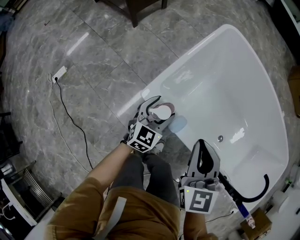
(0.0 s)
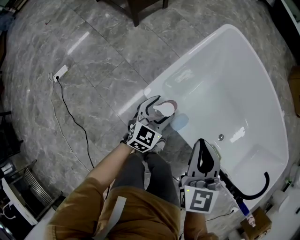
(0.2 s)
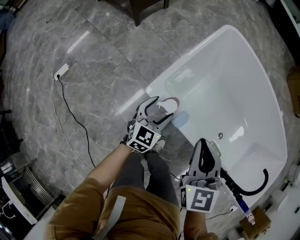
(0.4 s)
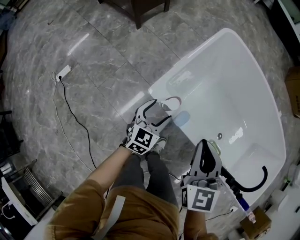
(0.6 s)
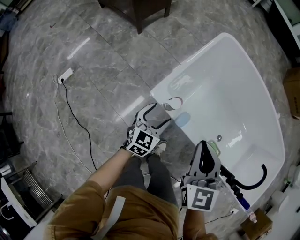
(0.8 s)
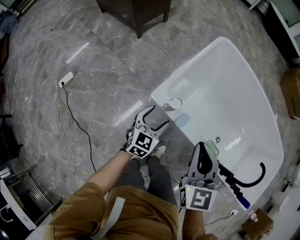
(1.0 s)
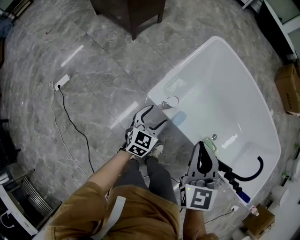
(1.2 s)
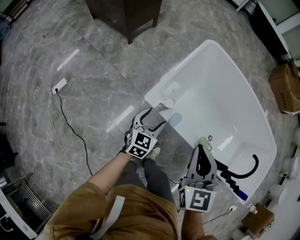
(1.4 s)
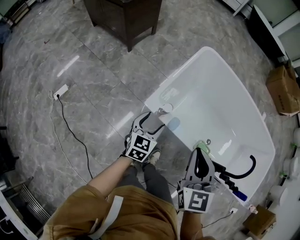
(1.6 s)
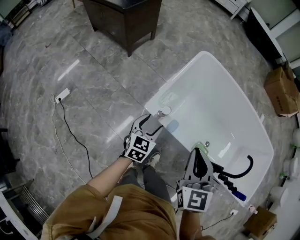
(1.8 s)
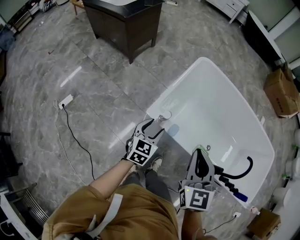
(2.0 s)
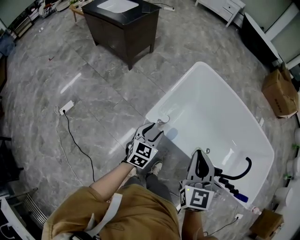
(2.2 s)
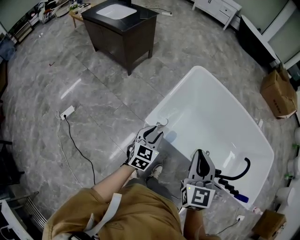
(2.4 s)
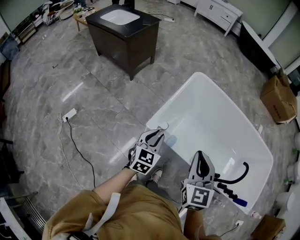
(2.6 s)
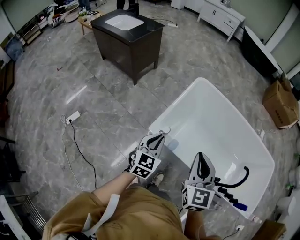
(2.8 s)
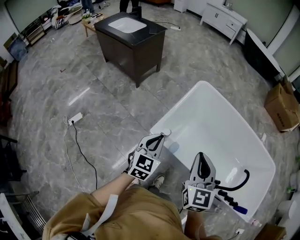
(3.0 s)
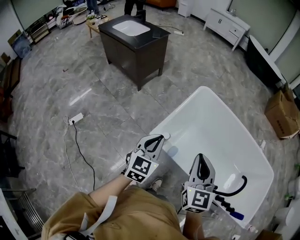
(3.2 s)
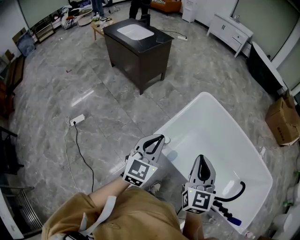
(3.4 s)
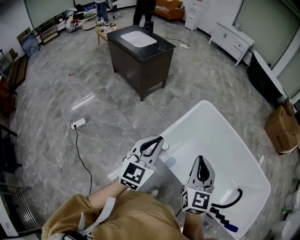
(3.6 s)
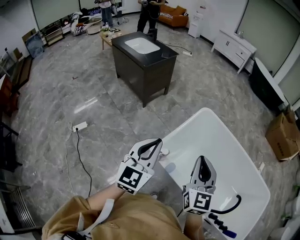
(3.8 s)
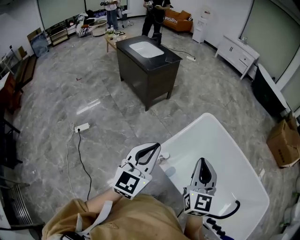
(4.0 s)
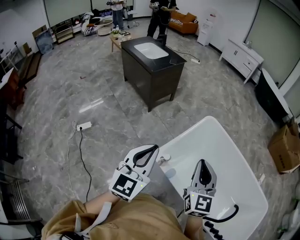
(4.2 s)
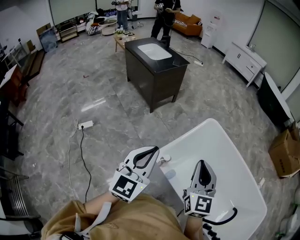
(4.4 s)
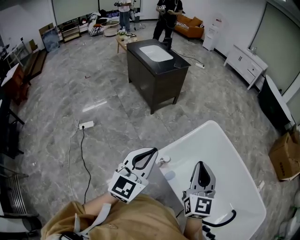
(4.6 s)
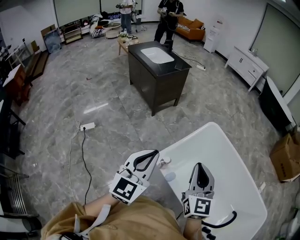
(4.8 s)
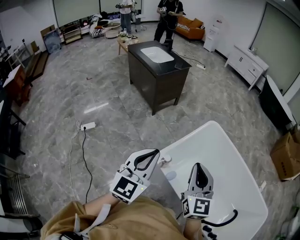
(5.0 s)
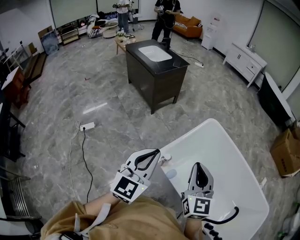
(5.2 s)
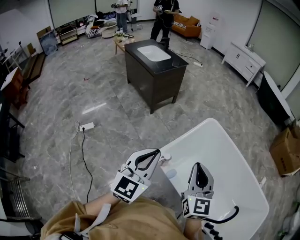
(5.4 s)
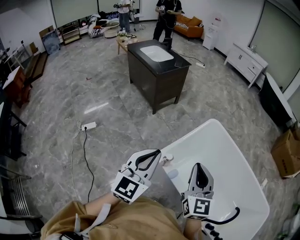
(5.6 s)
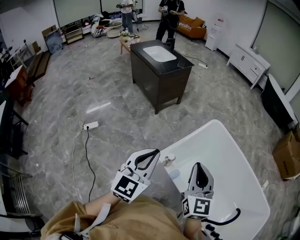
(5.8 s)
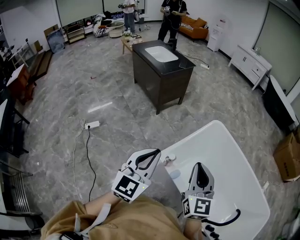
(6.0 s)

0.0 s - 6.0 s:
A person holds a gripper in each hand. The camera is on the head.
0.0 s - 1.6 s: The grippers both shift upward and backward by some 15 cm.
1.6 s - 3.0 s: The right gripper moves upward, about 10 cm, while the left gripper shifts roughly 20 cm upward, and closes up.
3.0 s - 4.4 s: The right gripper shifts some 10 cm upward and forward, while the left gripper goes roughly 20 cm upward, and rotates some 20 degrees.
4.4 s - 6.0 s: The grippers make only small movements.

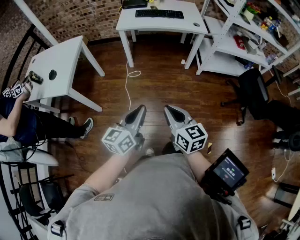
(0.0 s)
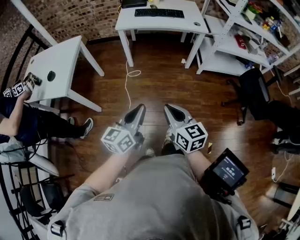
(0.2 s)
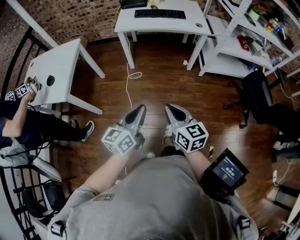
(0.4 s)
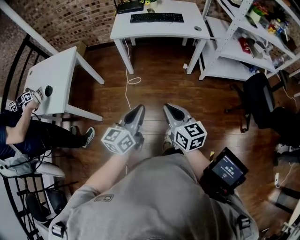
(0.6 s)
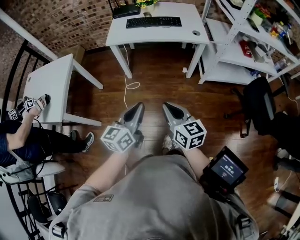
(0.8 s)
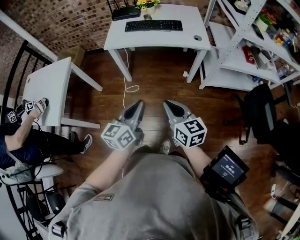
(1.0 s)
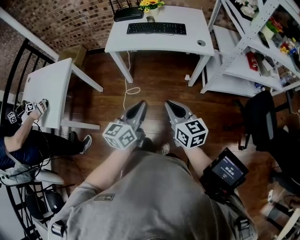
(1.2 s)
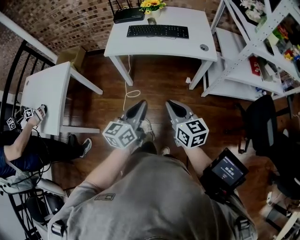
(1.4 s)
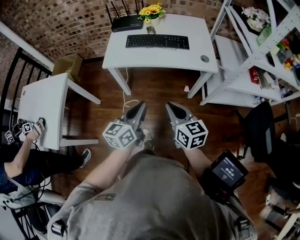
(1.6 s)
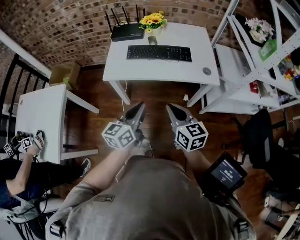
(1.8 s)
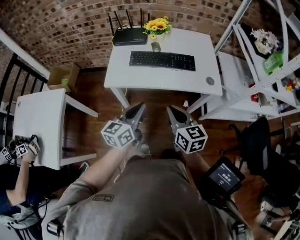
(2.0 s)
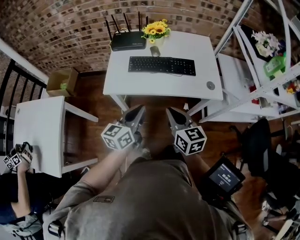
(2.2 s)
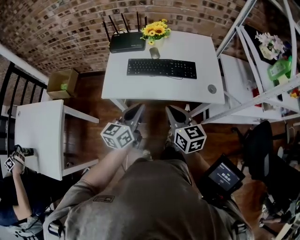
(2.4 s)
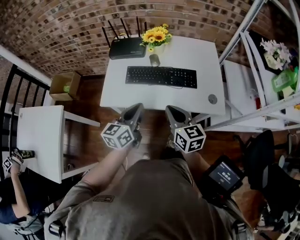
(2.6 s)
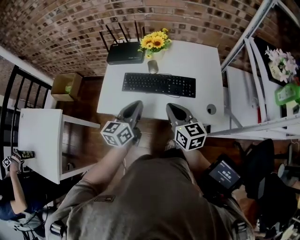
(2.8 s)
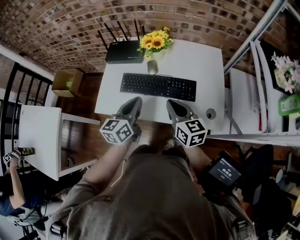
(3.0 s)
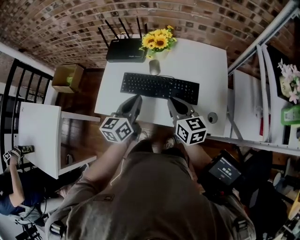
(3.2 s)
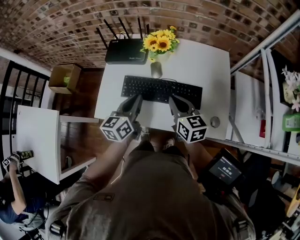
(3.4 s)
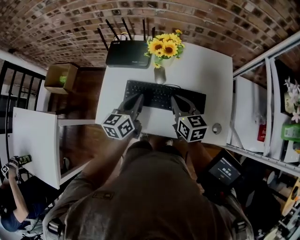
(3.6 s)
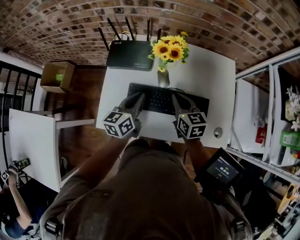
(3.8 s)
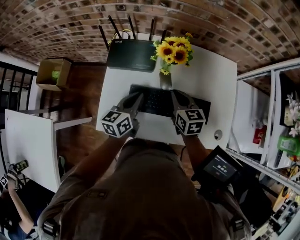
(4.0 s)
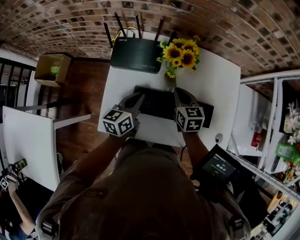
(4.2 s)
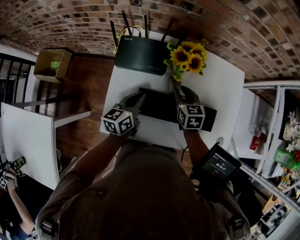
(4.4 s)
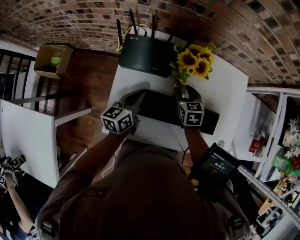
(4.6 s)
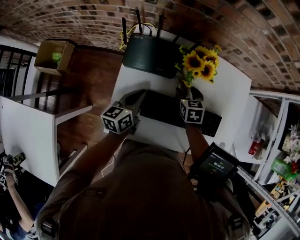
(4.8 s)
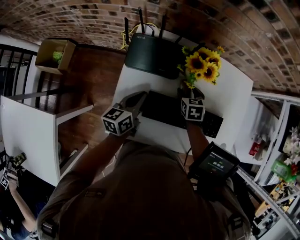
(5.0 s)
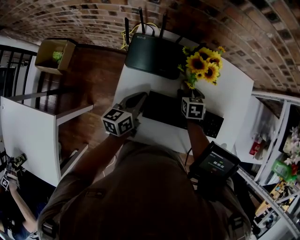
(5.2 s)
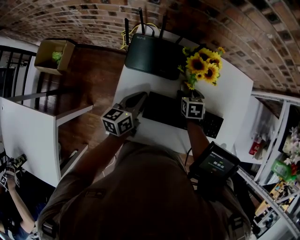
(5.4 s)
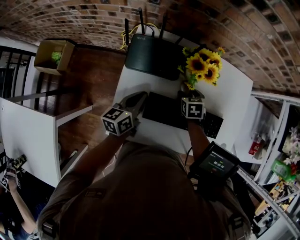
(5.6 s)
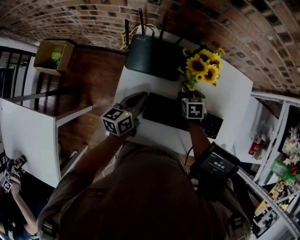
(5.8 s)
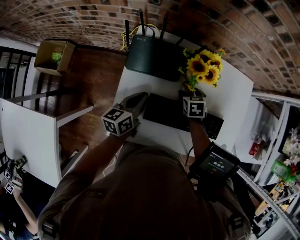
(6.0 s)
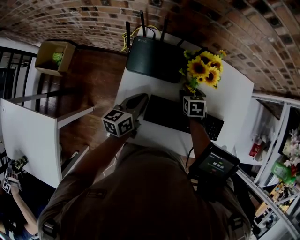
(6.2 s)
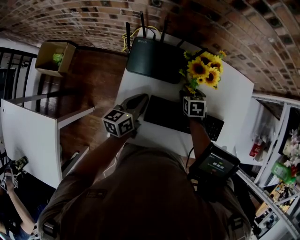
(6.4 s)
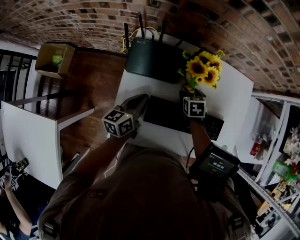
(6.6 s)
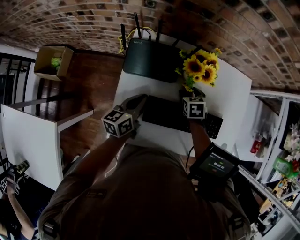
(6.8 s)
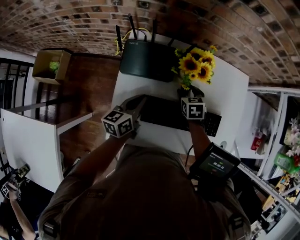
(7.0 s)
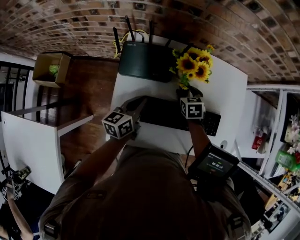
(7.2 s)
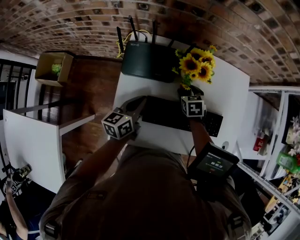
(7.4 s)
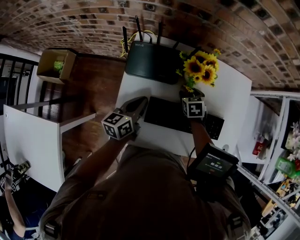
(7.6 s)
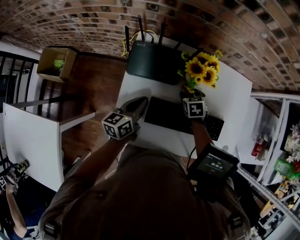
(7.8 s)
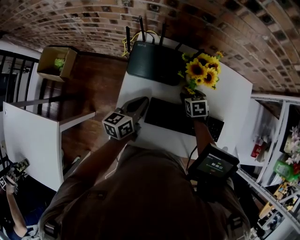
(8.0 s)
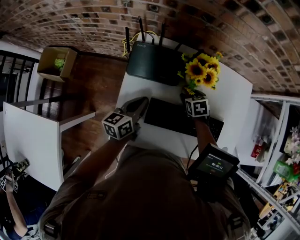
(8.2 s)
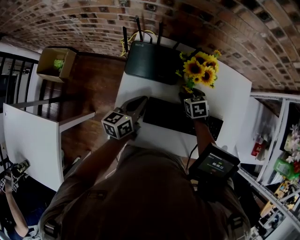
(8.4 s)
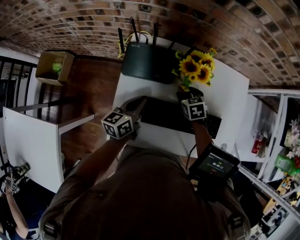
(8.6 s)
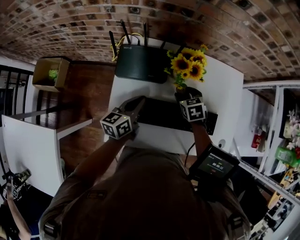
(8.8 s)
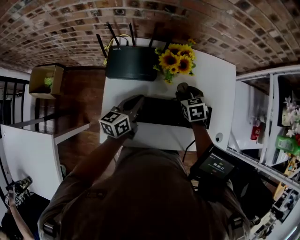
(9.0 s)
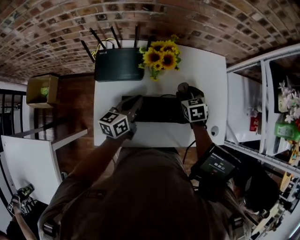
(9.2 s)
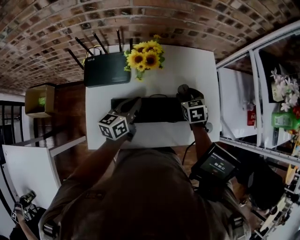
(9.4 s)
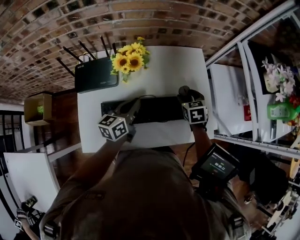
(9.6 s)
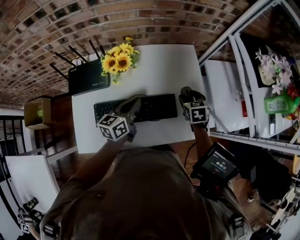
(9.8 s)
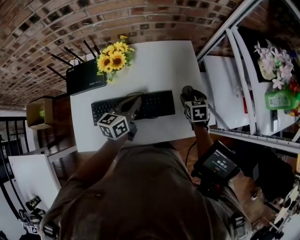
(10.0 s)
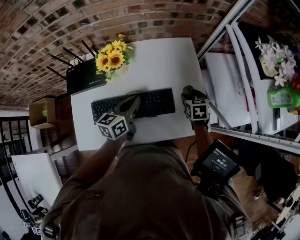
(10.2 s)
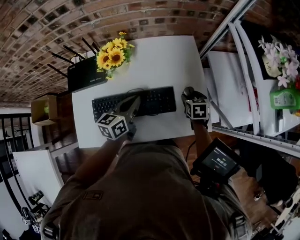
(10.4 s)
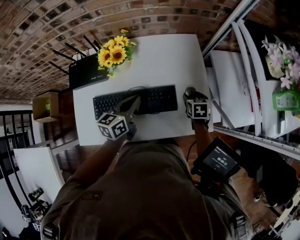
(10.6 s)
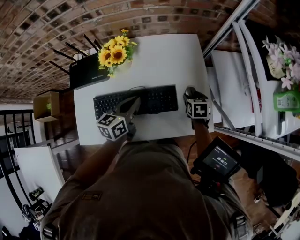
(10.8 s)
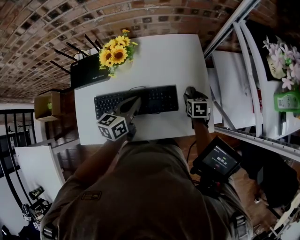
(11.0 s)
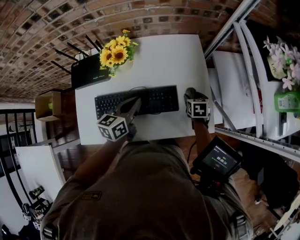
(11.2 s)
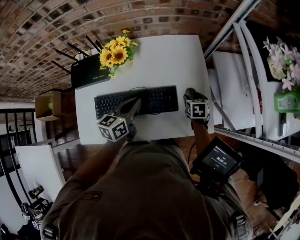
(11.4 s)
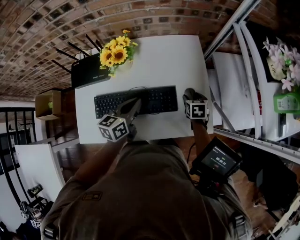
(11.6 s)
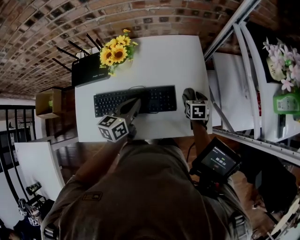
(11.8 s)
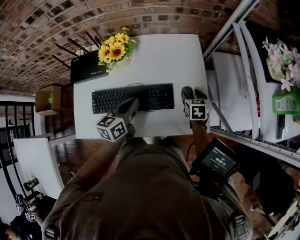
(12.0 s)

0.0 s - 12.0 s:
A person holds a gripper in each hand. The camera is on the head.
0.0 s - 1.6 s: Both grippers are carried forward, about 40 cm.
1.6 s - 3.0 s: Both grippers travel together forward, some 35 cm.
3.0 s - 4.4 s: The left gripper travels forward, to the left and downward by about 25 cm. The right gripper moves forward and downward, some 25 cm, rotates some 30 degrees, and opens up.
4.4 s - 6.0 s: The right gripper is displaced downward by roughly 10 cm, turns by some 20 degrees, and opens up. Meanwhile the left gripper shifts by about 5 cm.
6.0 s - 7.6 s: There are only small adjustments of the grippers.
7.6 s - 9.0 s: The left gripper moves to the right, approximately 5 cm, while the right gripper heads upward and to the right, covering roughly 10 cm.
9.0 s - 10.4 s: Both grippers move to the right, approximately 25 cm. The right gripper changes its angle by about 30 degrees.
10.4 s - 12.0 s: There are only small adjustments of the grippers.

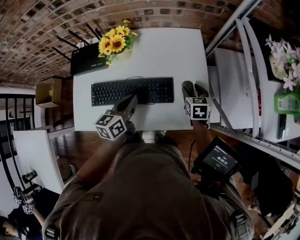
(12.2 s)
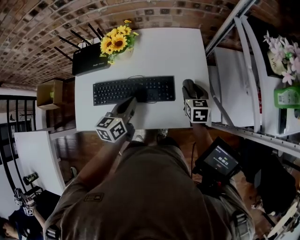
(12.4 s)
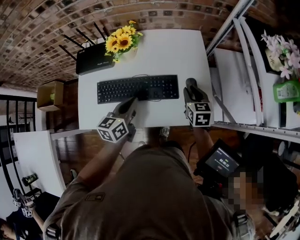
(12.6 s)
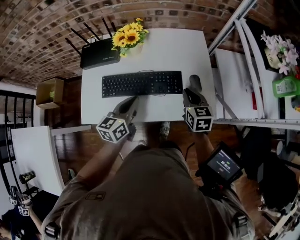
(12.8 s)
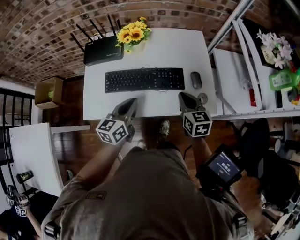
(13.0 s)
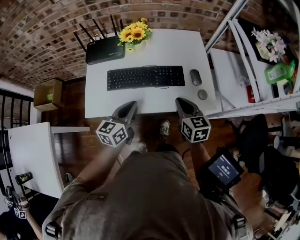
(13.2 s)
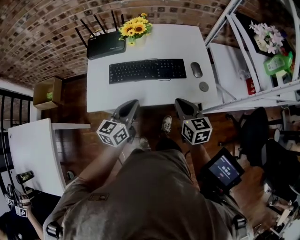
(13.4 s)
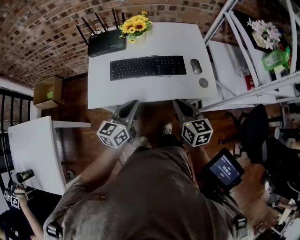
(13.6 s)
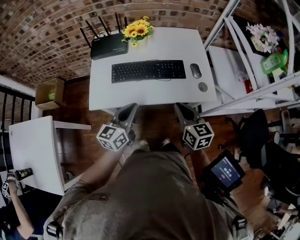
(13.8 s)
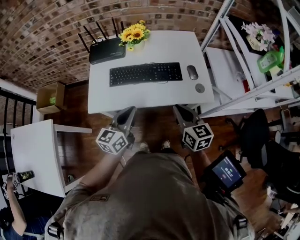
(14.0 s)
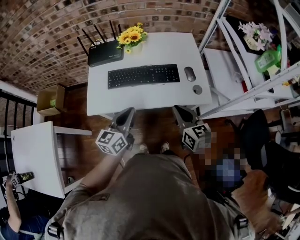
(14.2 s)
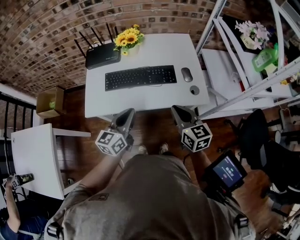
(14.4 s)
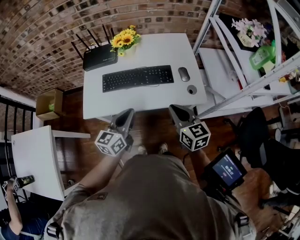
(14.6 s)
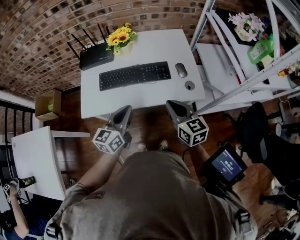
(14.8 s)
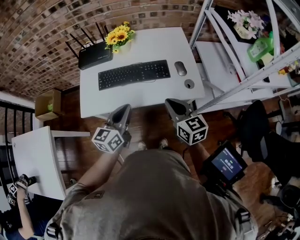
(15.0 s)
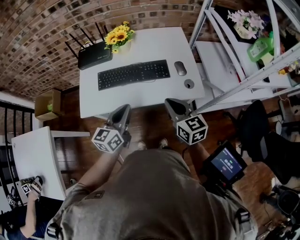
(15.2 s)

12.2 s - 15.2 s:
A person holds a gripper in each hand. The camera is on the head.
12.2 s - 13.8 s: The left gripper is displaced backward and to the left by some 25 cm; the right gripper heads backward, to the left and upward, covering approximately 35 cm, swivels roughly 30 degrees, and closes up.
13.8 s - 15.2 s: The left gripper ends up roughly 5 cm from where it was.

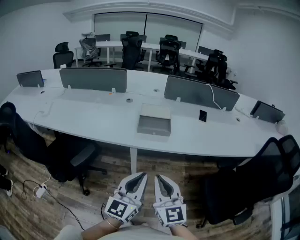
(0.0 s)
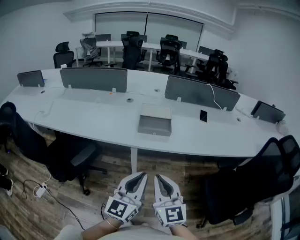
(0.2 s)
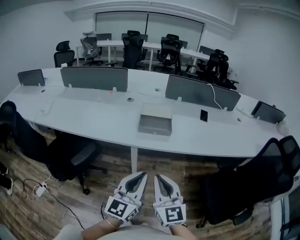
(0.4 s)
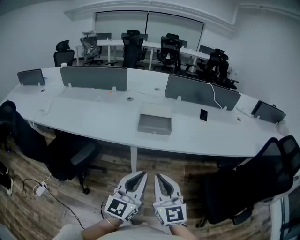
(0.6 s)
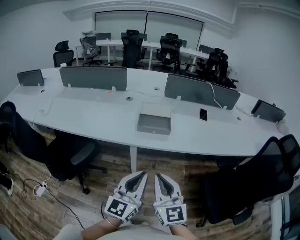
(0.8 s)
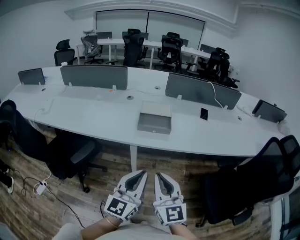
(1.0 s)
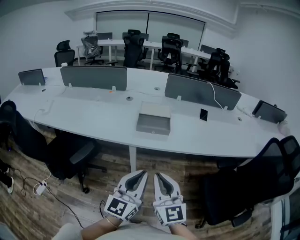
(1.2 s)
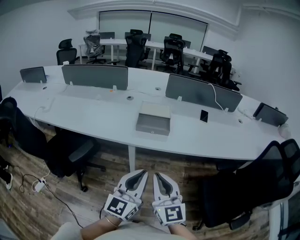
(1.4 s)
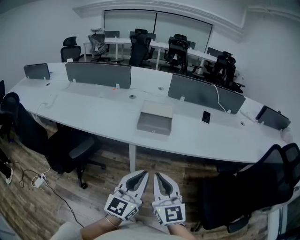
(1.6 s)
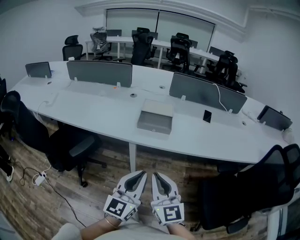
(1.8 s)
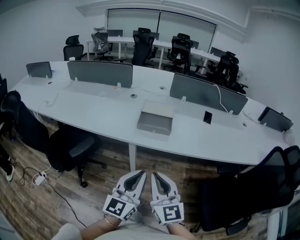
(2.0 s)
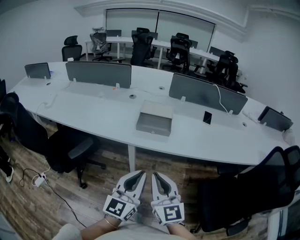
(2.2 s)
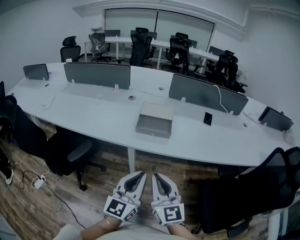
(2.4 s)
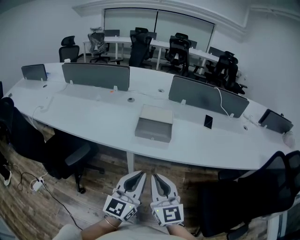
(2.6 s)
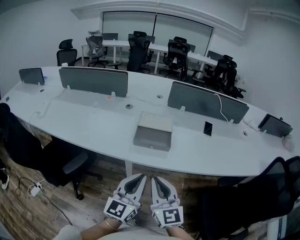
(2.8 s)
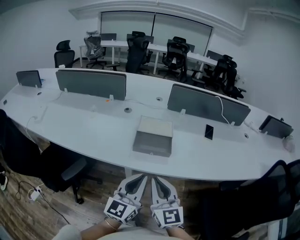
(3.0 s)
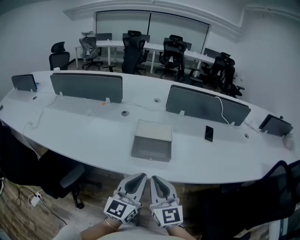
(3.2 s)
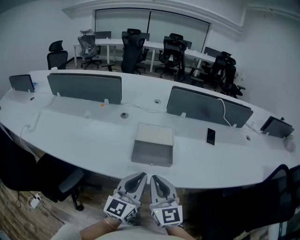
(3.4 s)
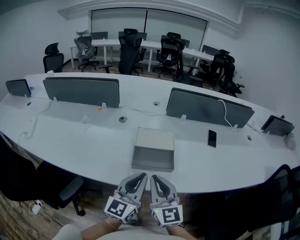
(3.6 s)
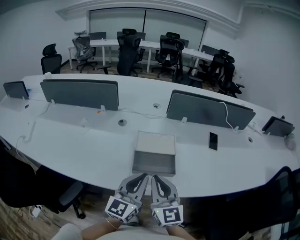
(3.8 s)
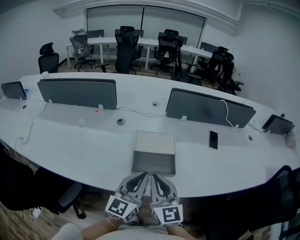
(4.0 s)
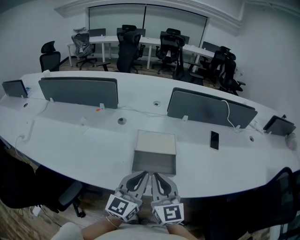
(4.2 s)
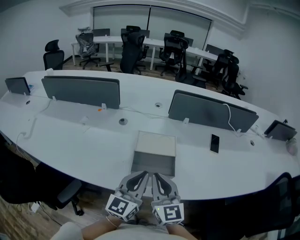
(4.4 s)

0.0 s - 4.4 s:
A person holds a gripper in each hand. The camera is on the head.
0.0 s - 1.4 s: There are only small adjustments of the grippers.
1.4 s - 3.0 s: The two grippers go approximately 15 cm forward.
3.0 s - 4.4 s: Both grippers move forward, roughly 15 cm.
